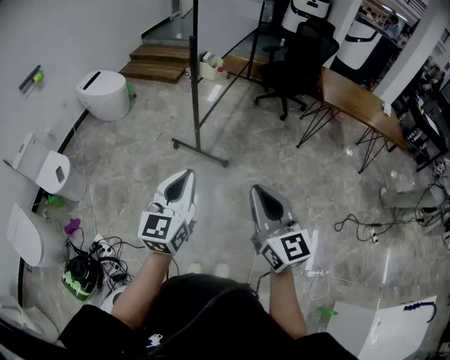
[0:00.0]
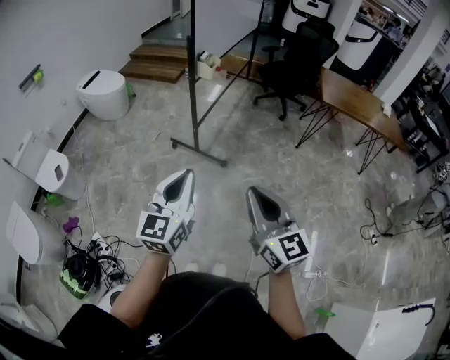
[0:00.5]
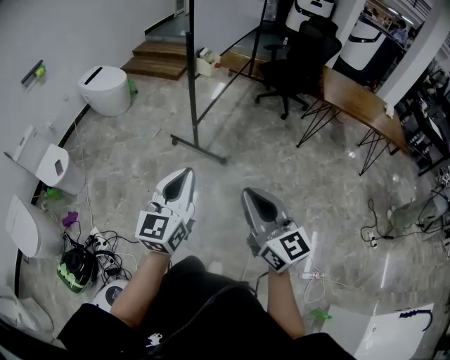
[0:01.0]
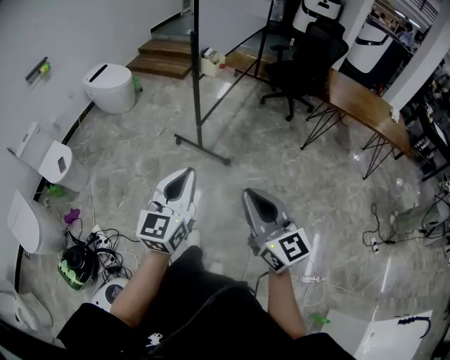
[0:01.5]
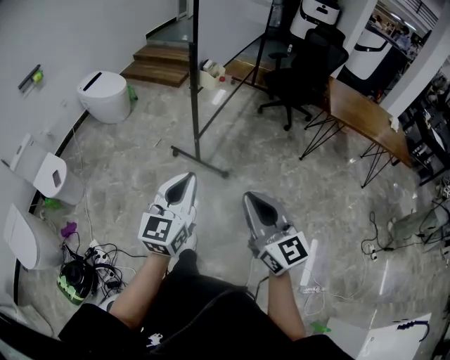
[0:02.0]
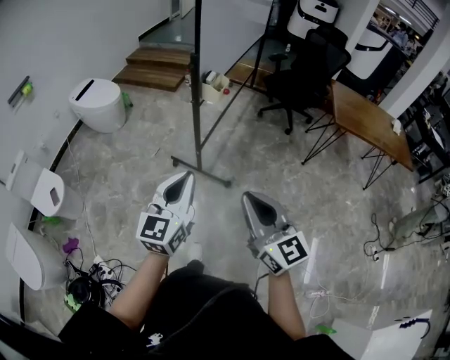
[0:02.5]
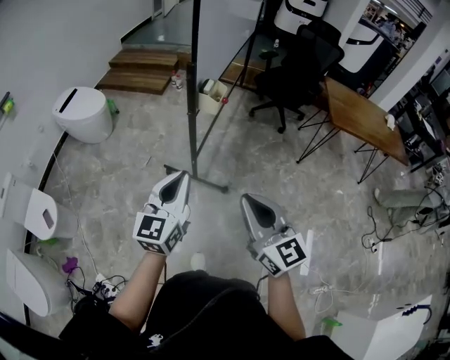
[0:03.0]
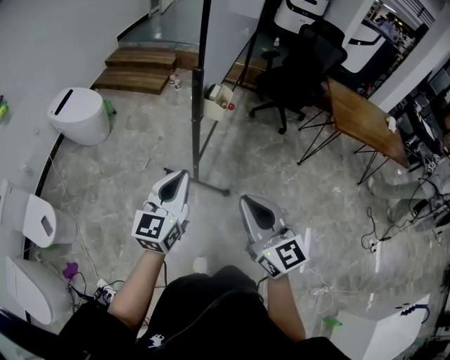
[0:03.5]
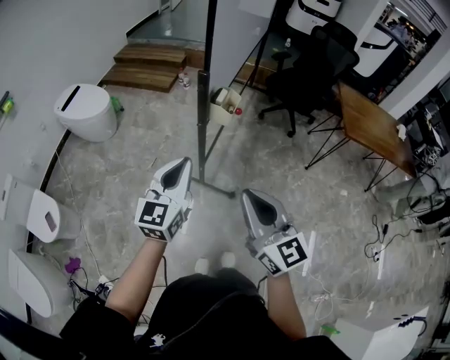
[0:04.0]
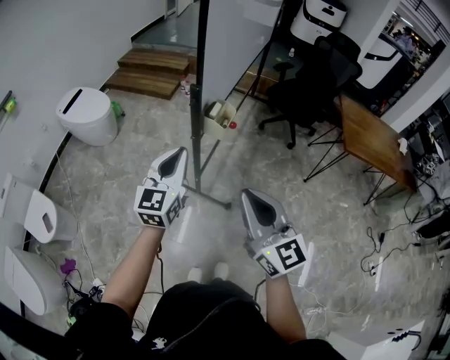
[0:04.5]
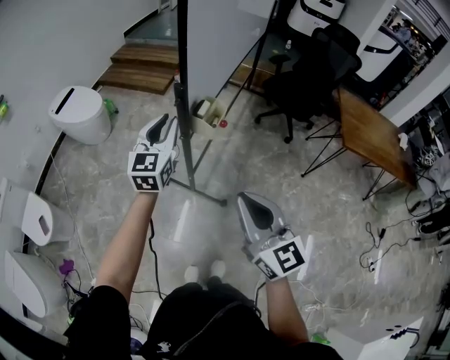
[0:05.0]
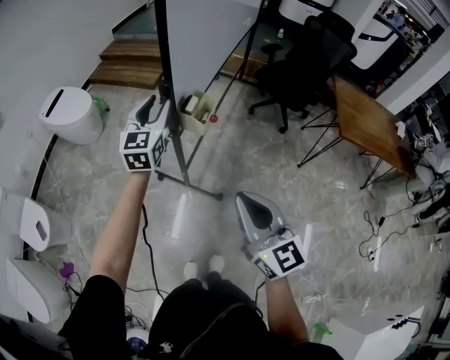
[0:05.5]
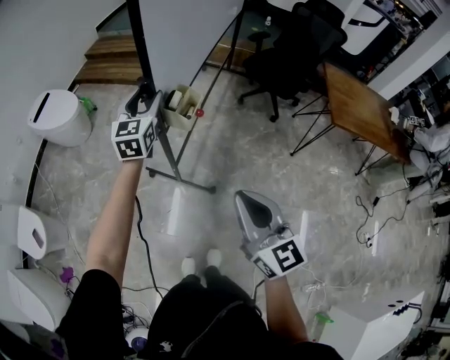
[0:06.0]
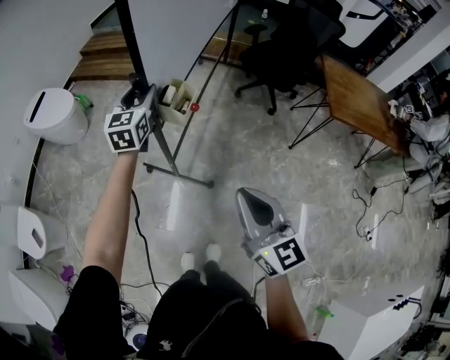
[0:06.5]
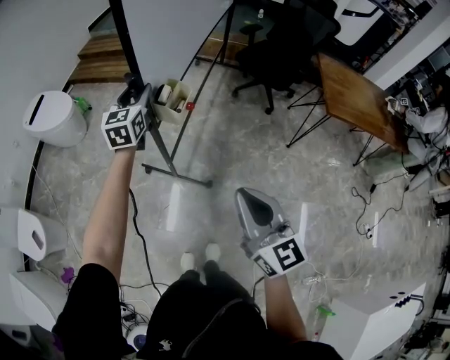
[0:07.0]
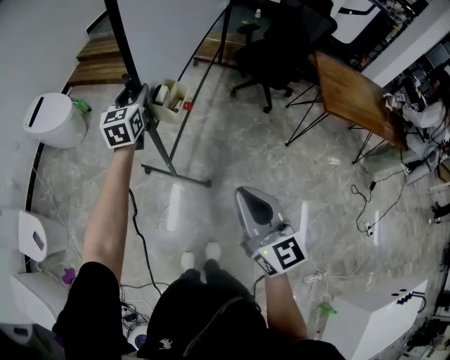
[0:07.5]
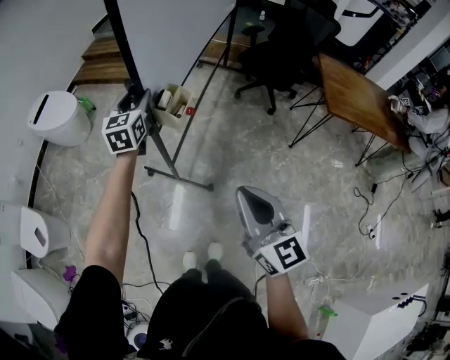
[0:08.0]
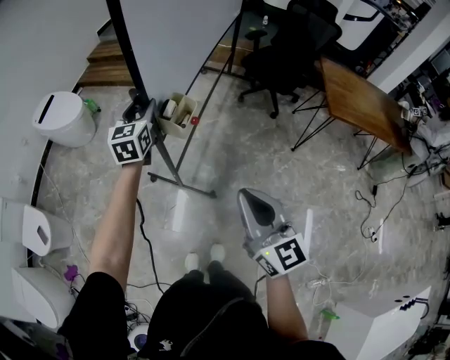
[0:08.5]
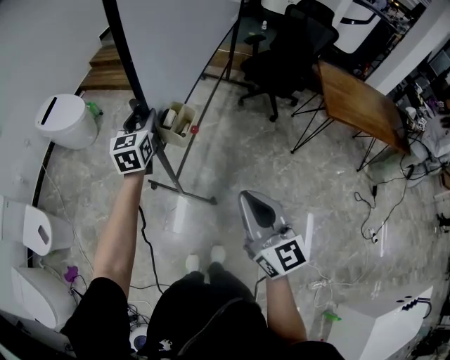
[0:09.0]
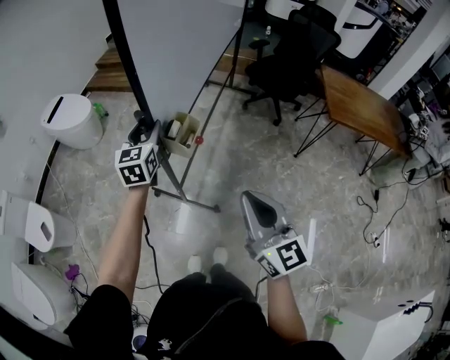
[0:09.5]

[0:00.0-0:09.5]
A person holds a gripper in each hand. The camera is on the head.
0:00.0 to 0:02.0: Both grippers travel together forward, roughly 10 cm.
0:02.0 to 0:04.0: The two grippers go about 30 cm forward.
0:04.0 to 0:05.5: The right gripper shifts some 10 cm to the right and forward; the left gripper goes some 25 cm forward, and opens up.
0:05.5 to 0:07.5: The left gripper moves roughly 5 cm; the right gripper moves to the right, some 5 cm.
0:07.5 to 0:09.5: The left gripper is displaced backward by roughly 15 cm, while the right gripper moves backward, roughly 5 cm.

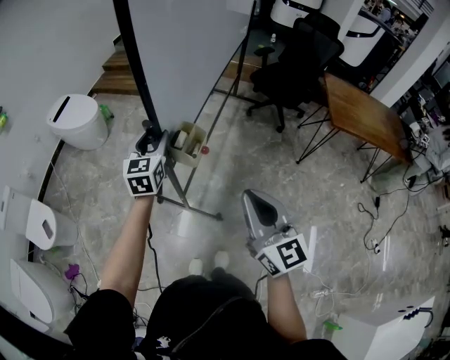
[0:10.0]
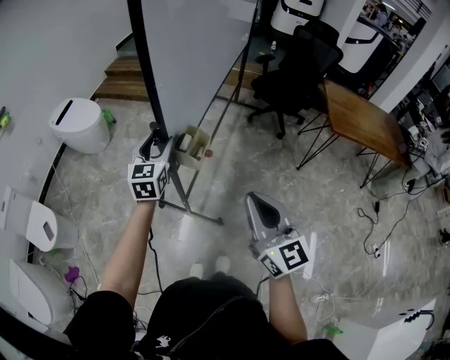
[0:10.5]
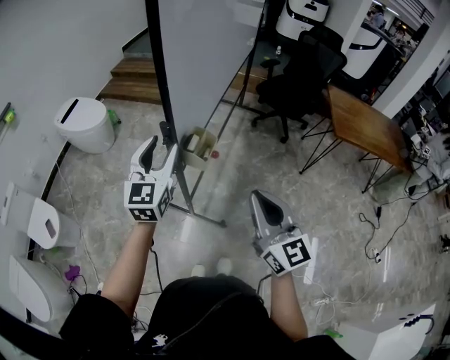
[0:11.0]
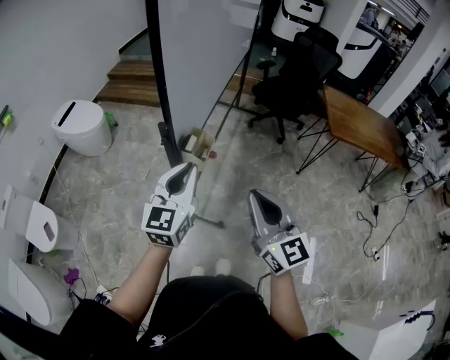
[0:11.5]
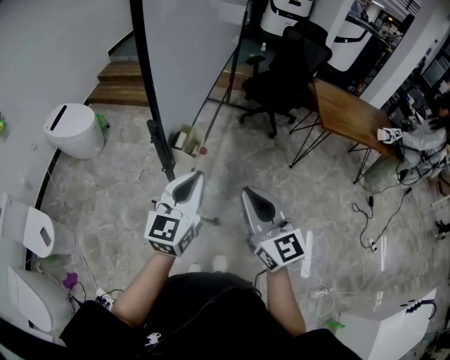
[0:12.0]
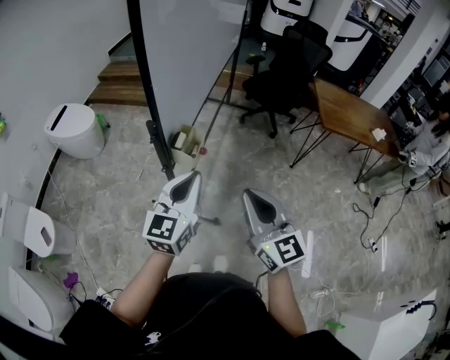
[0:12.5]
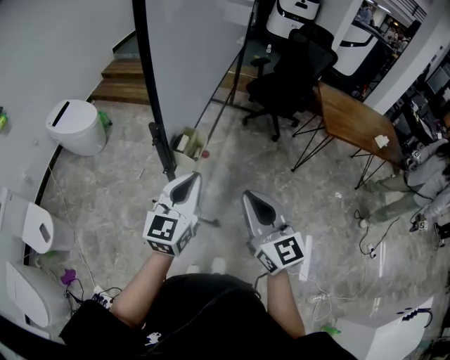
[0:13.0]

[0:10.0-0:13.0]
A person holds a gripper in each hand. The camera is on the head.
0:10.0 to 0:11.5: The left gripper goes about 15 cm backward, and closes.

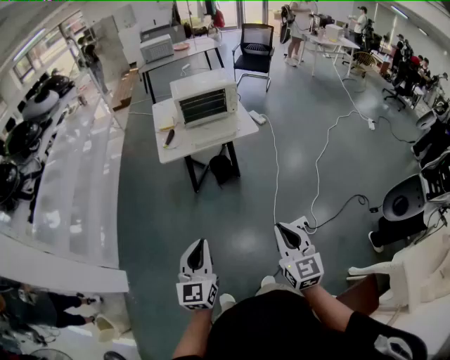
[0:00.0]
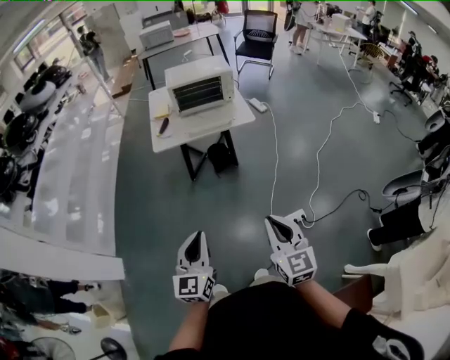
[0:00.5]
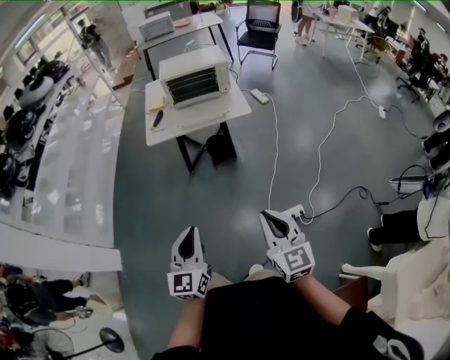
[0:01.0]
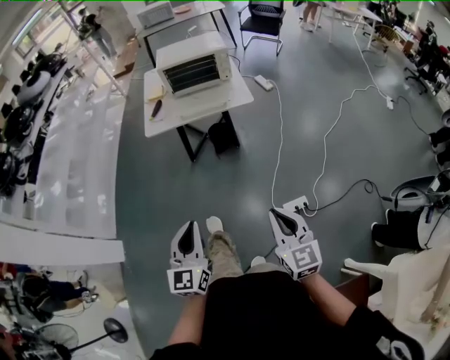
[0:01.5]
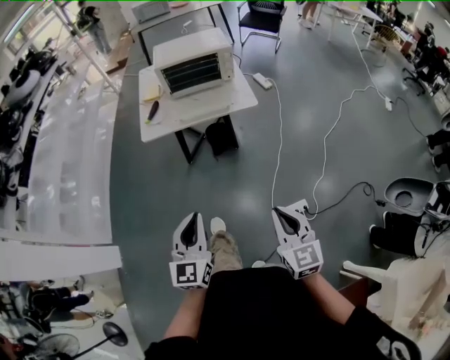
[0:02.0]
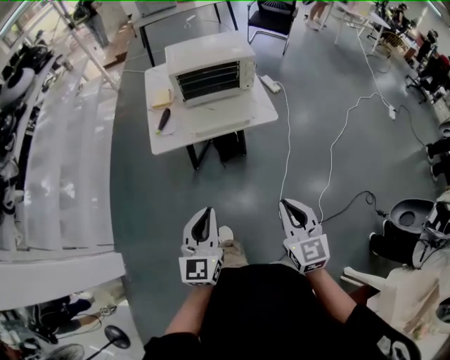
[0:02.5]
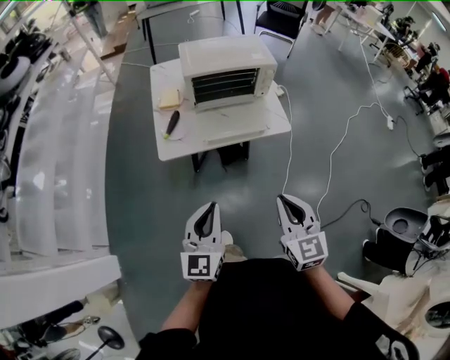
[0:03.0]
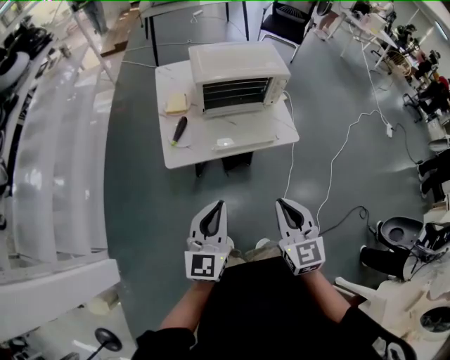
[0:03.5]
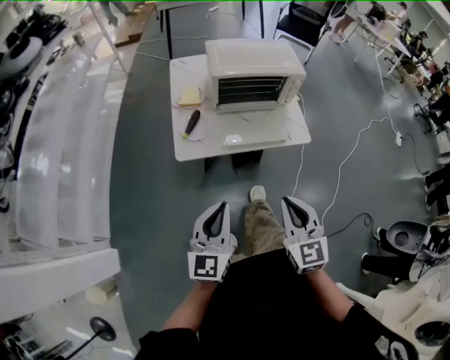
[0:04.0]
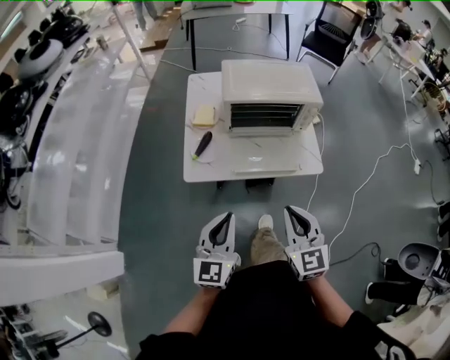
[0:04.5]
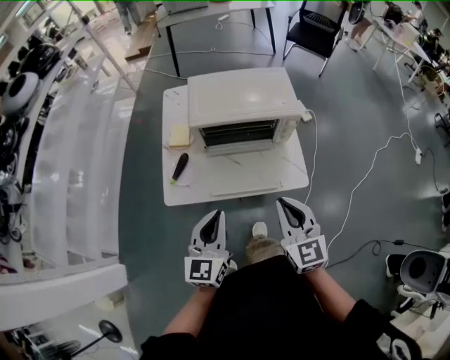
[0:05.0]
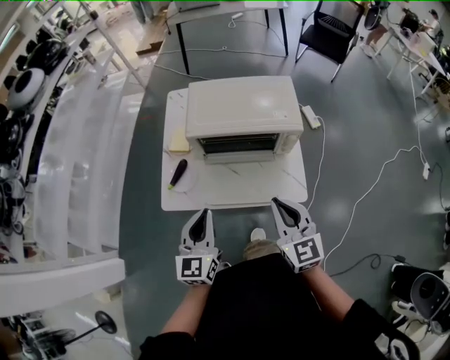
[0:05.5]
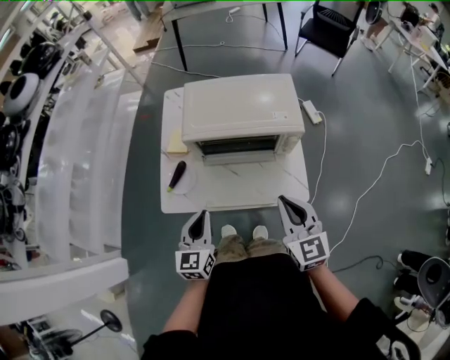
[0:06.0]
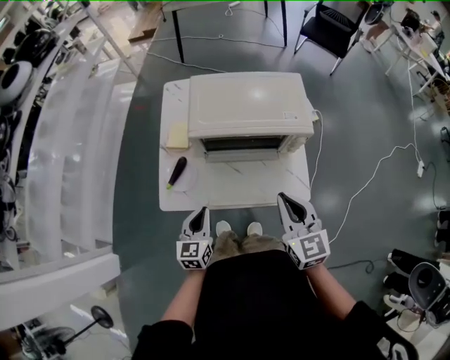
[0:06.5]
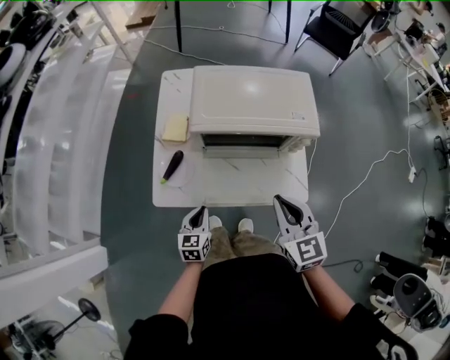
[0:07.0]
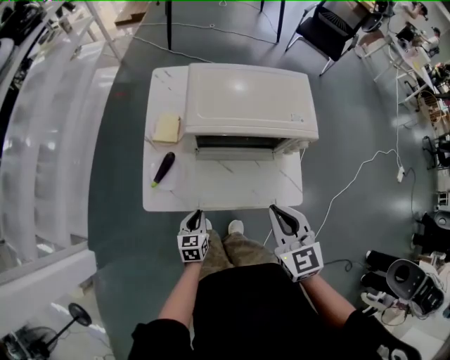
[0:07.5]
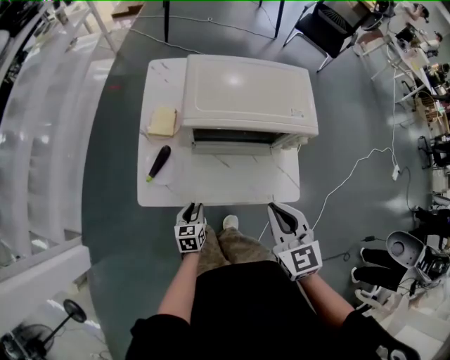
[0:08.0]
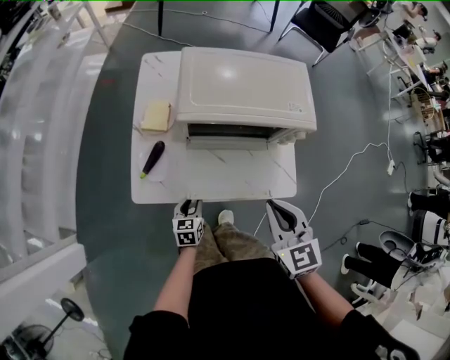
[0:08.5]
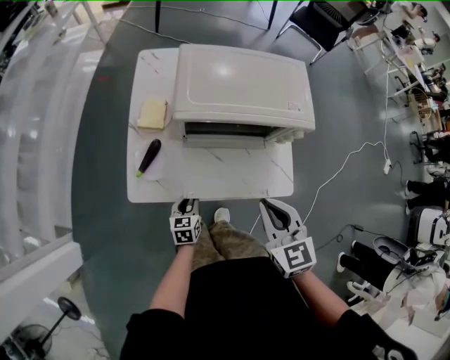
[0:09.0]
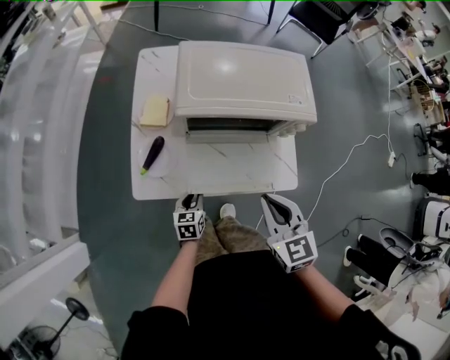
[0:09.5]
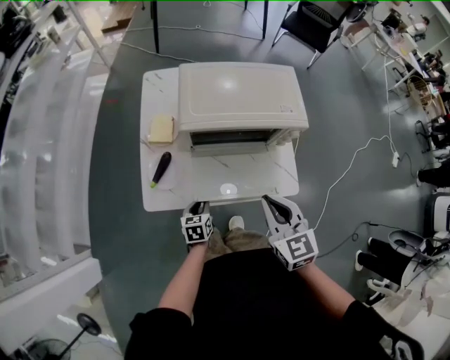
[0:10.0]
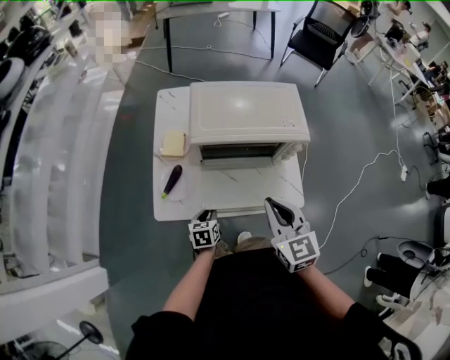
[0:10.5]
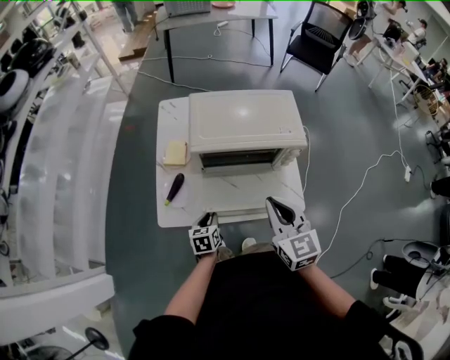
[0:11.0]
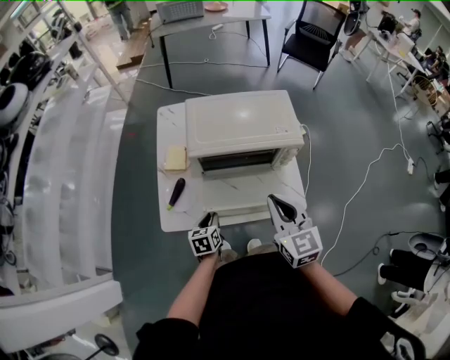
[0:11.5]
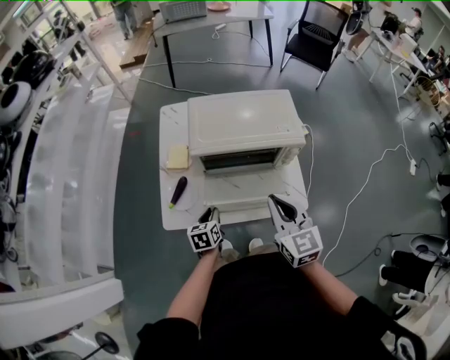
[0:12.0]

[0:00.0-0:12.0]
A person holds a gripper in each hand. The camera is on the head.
0:00.0 to 0:02.0: The left gripper travels forward and to the right by approximately 20 cm, while the right gripper is displaced forward, to the right and downward by approximately 20 cm.
0:02.0 to 0:04.0: Both grippers travel together forward and to the left, some 40 cm.
0:04.0 to 0:06.0: Both grippers move forward and to the right, about 35 cm. The left gripper turns by about 20 degrees.
0:06.0 to 0:08.0: The right gripper goes roughly 10 cm to the left. Meanwhile the left gripper heads downward, covering some 25 cm, changes its angle by roughly 30 degrees, and opens up.
0:08.0 to 0:10.0: The grippers stay close to where they were, moving slightly.
0:10.0 to 0:12.0: The left gripper goes approximately 10 cm upward. The right gripper moves approximately 5 cm.

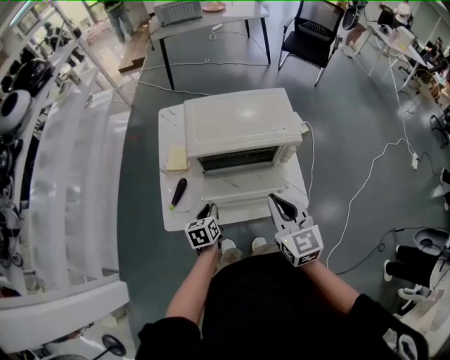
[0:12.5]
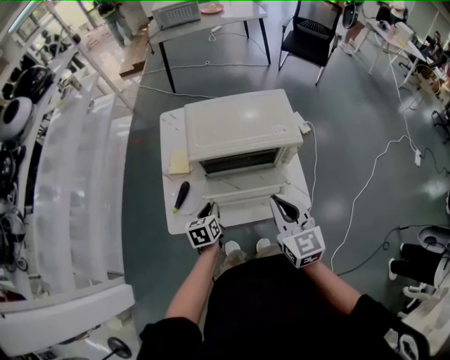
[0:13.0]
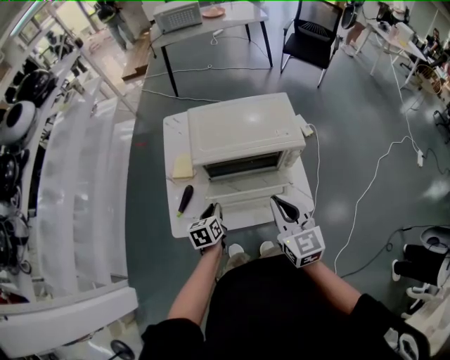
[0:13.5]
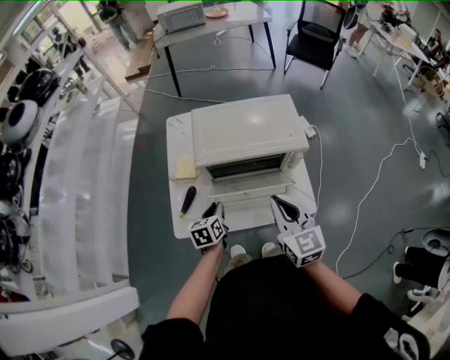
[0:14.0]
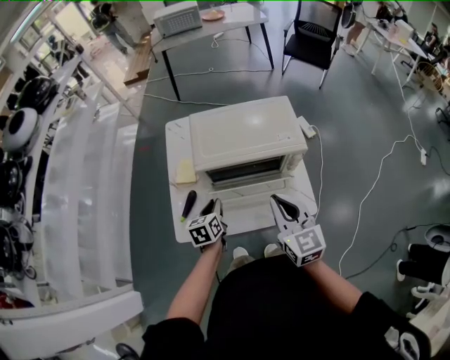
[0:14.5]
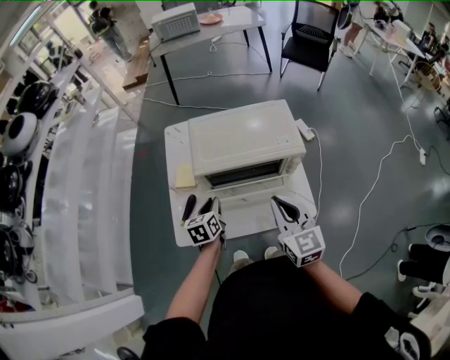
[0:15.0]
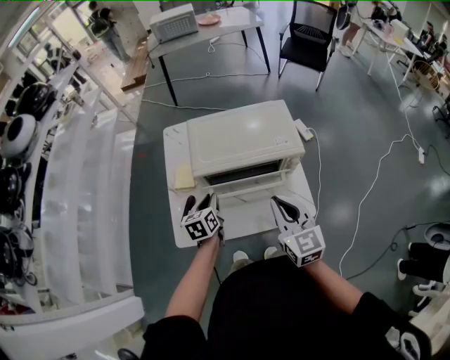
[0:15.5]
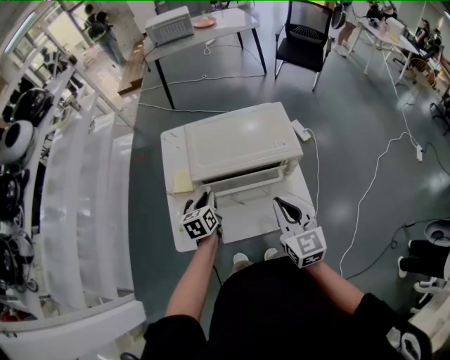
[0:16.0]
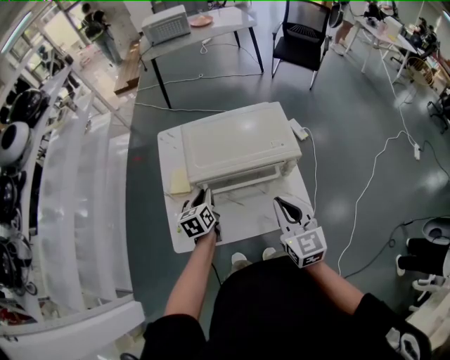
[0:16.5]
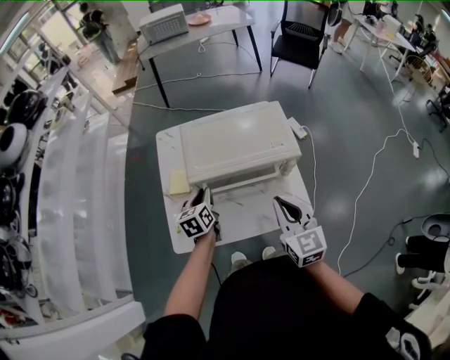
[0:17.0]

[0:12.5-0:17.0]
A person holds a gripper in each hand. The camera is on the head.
0:12.5 to 0:14.5: The left gripper heads forward and upward, covering roughly 10 cm.
0:14.5 to 0:17.0: The left gripper travels forward by approximately 5 cm.
